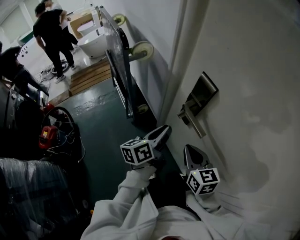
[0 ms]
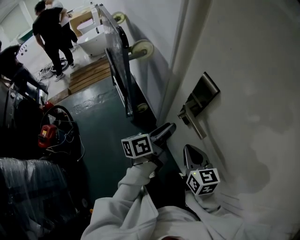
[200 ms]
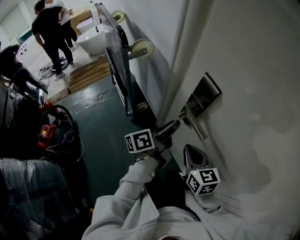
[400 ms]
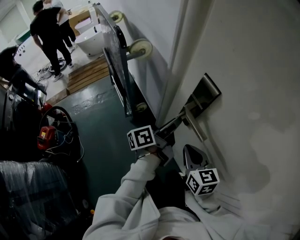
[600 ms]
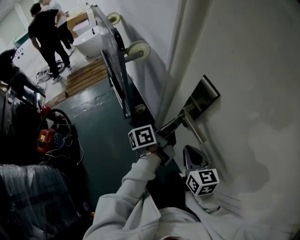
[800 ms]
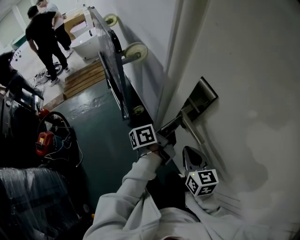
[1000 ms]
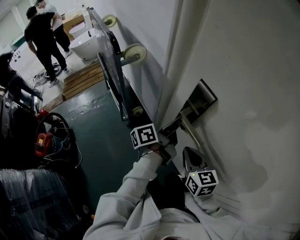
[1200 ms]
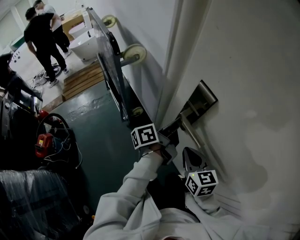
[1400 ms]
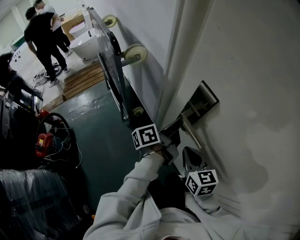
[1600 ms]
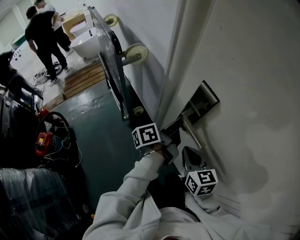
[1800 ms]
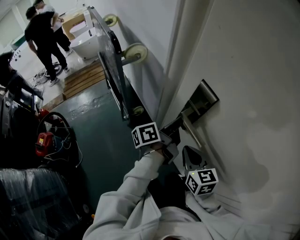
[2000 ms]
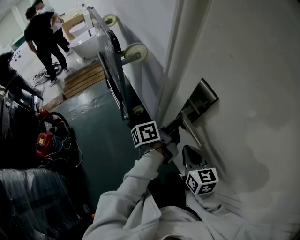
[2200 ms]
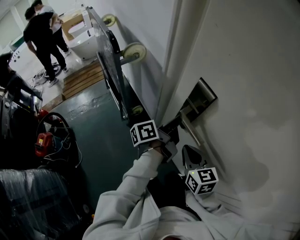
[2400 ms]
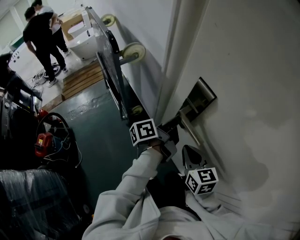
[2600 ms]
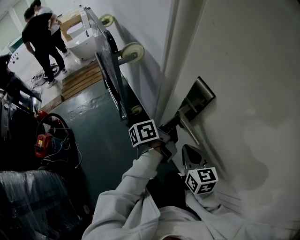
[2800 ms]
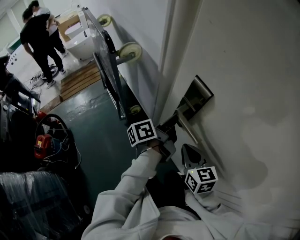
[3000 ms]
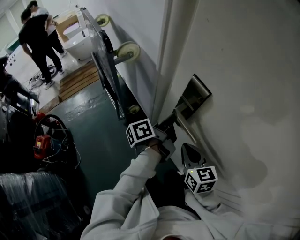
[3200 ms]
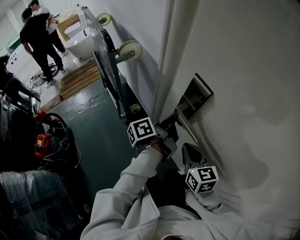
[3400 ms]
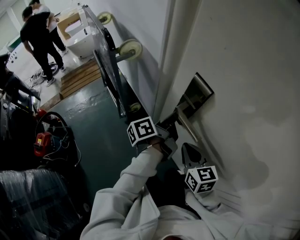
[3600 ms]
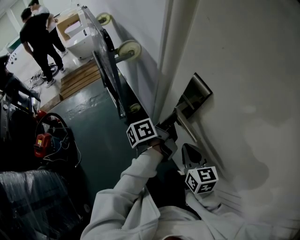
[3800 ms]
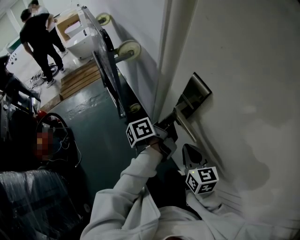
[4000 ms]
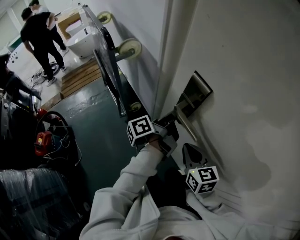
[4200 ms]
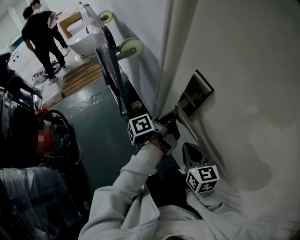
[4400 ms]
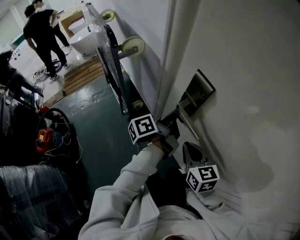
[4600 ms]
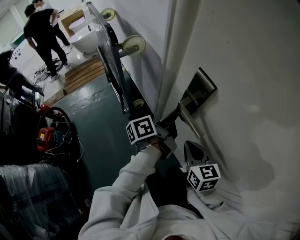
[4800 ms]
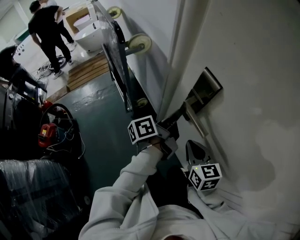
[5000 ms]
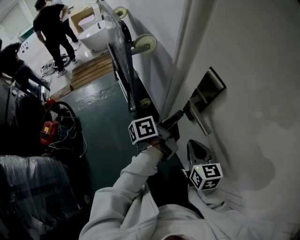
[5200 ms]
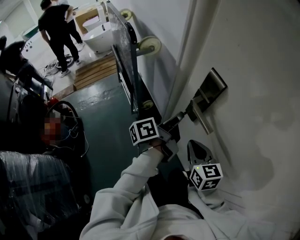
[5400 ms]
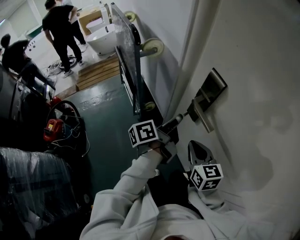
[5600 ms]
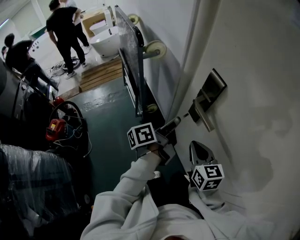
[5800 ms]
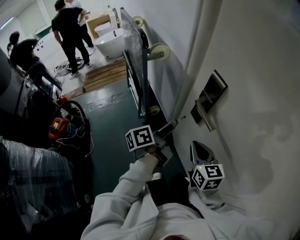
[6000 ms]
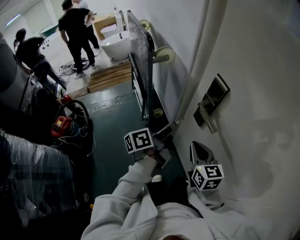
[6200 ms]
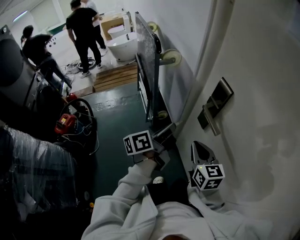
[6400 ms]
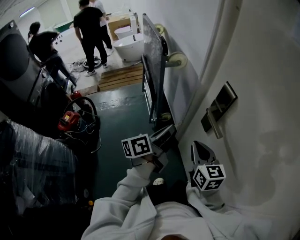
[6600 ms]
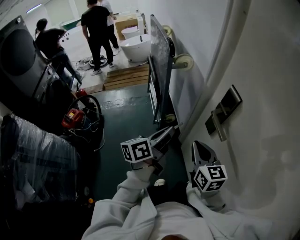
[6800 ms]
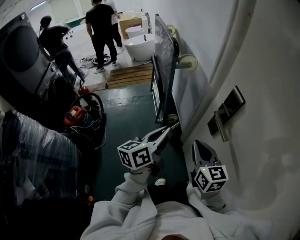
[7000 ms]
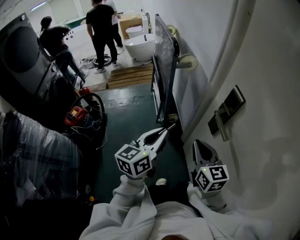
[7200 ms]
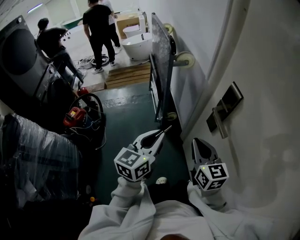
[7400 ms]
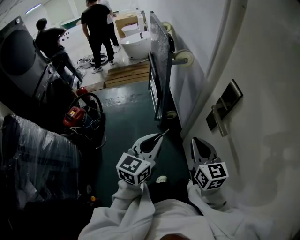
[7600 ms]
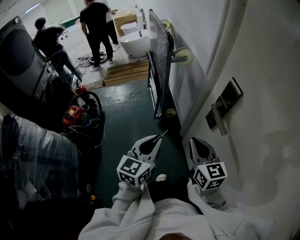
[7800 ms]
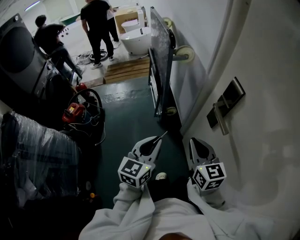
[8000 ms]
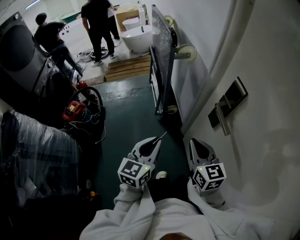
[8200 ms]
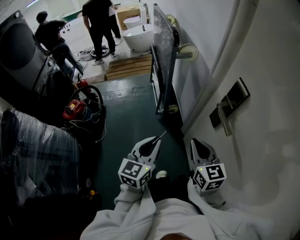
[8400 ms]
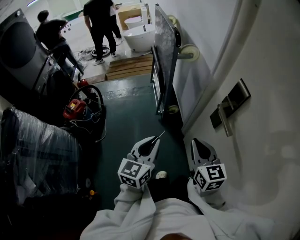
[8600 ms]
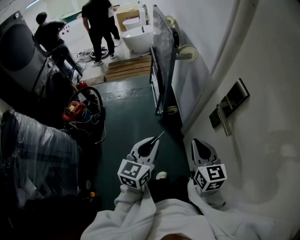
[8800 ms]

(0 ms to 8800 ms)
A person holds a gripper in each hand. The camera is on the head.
0 ms - 1400 ms: The left gripper is displaced forward by approximately 10 cm, and changes its angle by some 30 degrees.
1400 ms - 3000 ms: The two grippers keep their place.
3000 ms - 4400 ms: The grippers make only small movements.
4400 ms - 5800 ms: The left gripper travels backward and to the left by approximately 10 cm, and rotates some 20 degrees.
5800 ms - 7400 ms: The left gripper heads to the left and backward, covering some 15 cm, and rotates around the line of its fingers by roughly 60 degrees, clockwise from behind. The right gripper is displaced to the left by some 5 cm.
7400 ms - 8800 ms: The left gripper is displaced downward by about 5 cm.

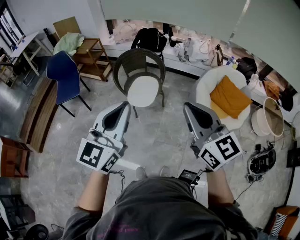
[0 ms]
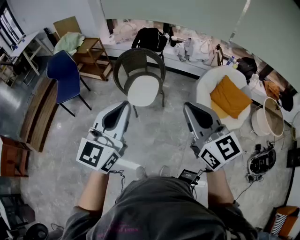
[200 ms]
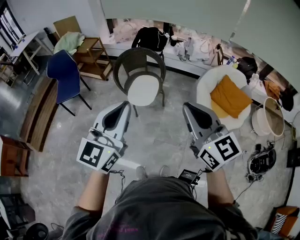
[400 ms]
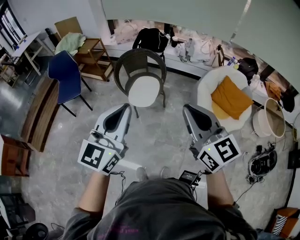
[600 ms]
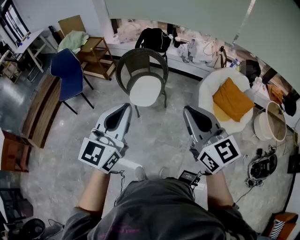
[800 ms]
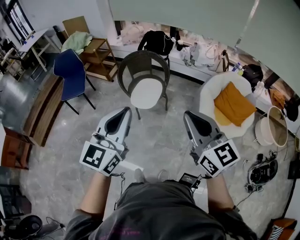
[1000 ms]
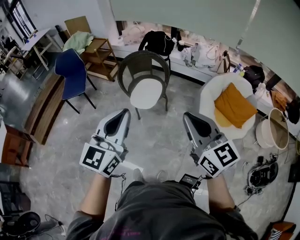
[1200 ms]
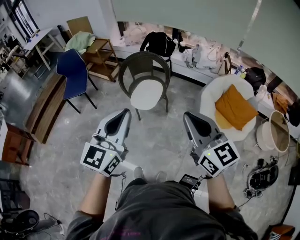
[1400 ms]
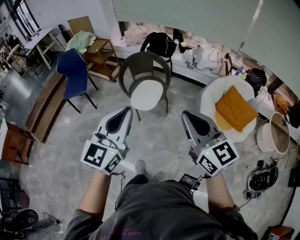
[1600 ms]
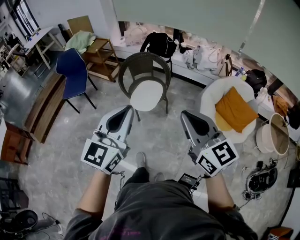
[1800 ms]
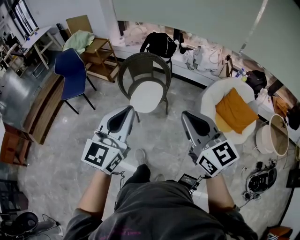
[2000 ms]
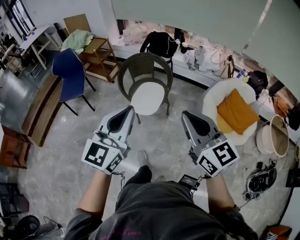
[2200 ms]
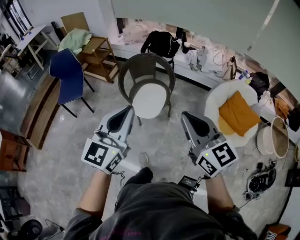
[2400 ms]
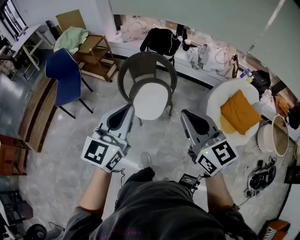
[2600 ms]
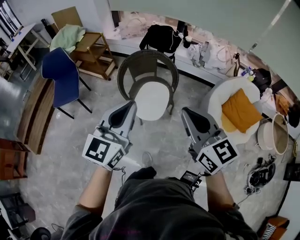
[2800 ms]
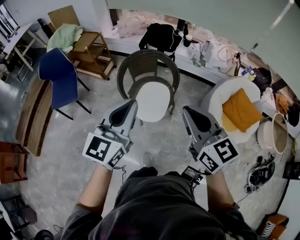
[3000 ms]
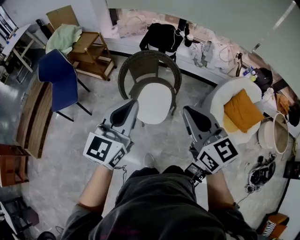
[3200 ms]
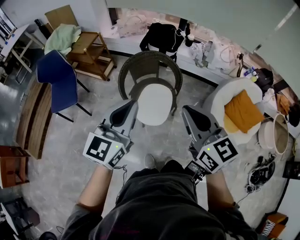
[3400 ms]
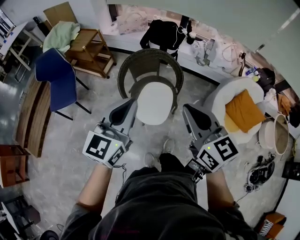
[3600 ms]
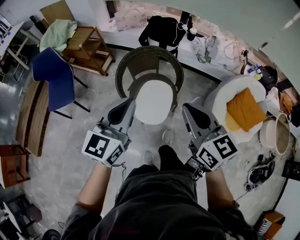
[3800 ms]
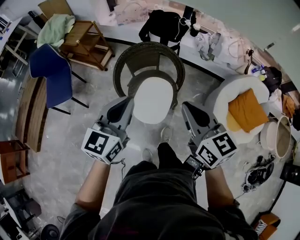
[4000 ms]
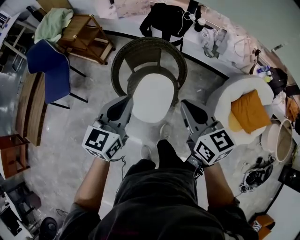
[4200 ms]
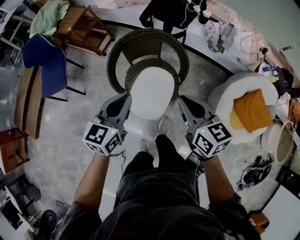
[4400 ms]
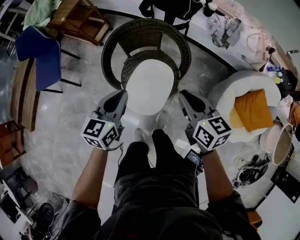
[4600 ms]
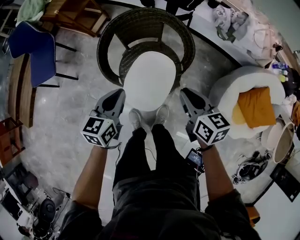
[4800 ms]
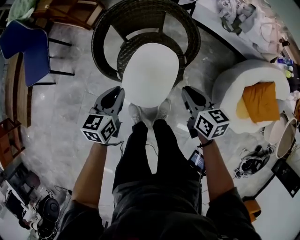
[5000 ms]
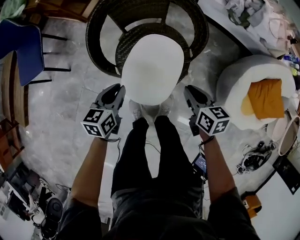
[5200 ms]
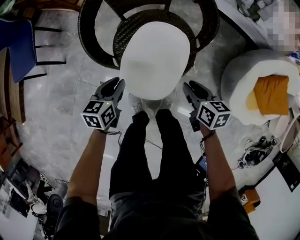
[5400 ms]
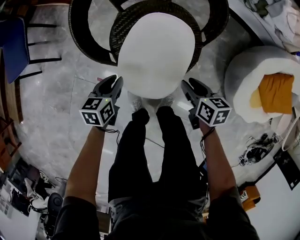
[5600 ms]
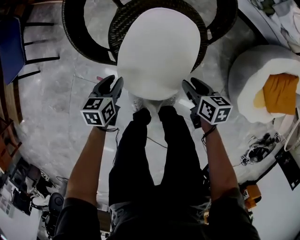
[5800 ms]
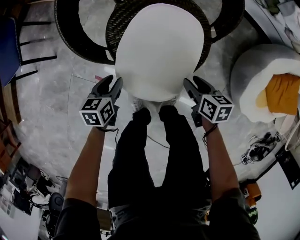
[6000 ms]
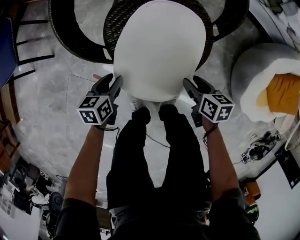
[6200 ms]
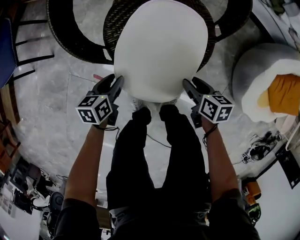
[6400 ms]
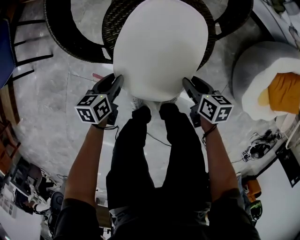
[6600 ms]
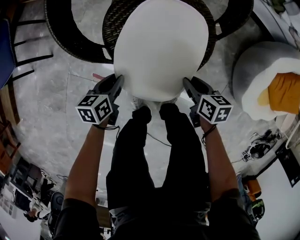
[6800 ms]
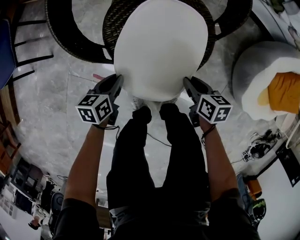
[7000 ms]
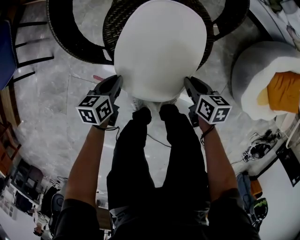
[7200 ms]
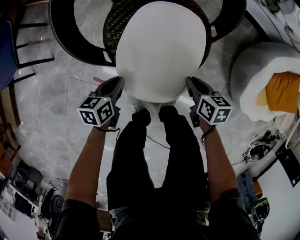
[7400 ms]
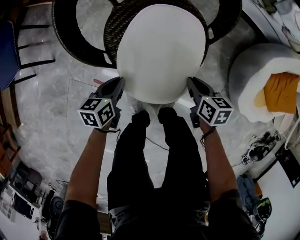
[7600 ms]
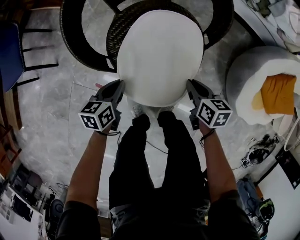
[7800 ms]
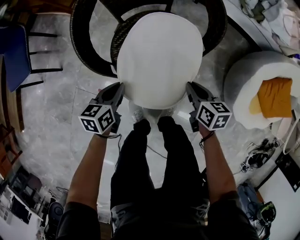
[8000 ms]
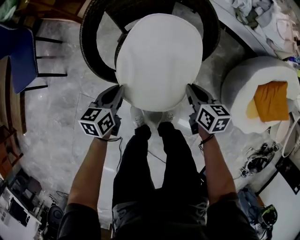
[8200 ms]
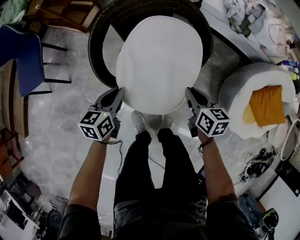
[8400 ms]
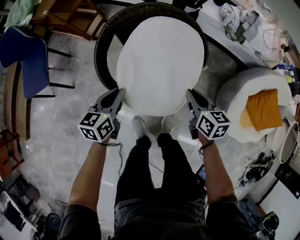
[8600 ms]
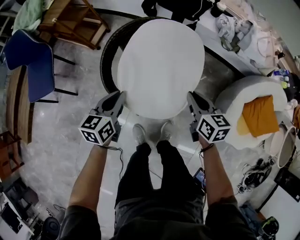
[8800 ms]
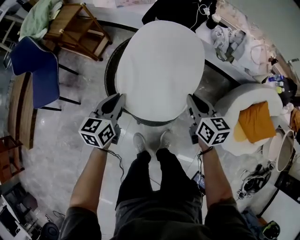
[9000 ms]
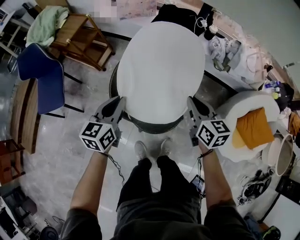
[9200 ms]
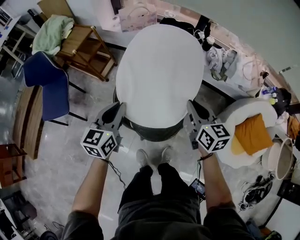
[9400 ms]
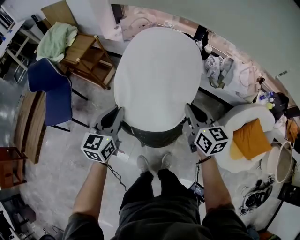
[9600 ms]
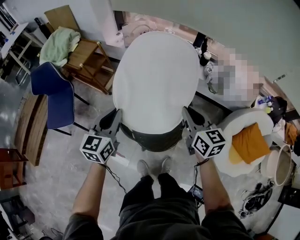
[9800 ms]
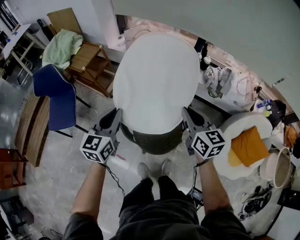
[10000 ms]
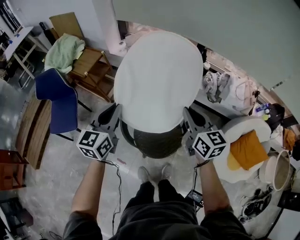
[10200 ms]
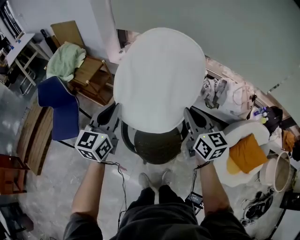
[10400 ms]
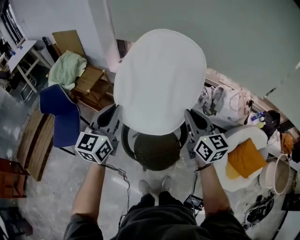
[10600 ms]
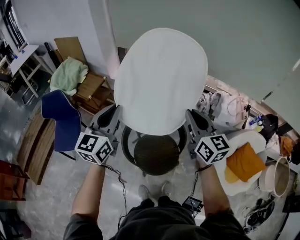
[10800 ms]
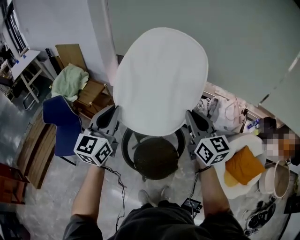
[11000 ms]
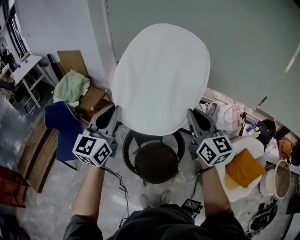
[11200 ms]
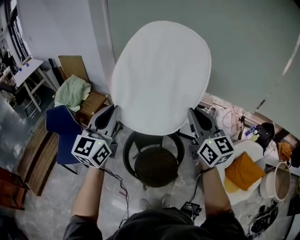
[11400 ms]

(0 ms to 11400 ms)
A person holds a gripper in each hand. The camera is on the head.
0 ms - 1400 ms: The grippers both shift to the right by about 5 cm.
1400 ms - 2800 ms: The left gripper is displaced forward by roughly 25 cm. Meanwhile the right gripper is displaced forward and to the left by roughly 30 cm.
2800 ms - 4200 ms: The grippers both shift forward and downward by approximately 25 cm.
4200 ms - 5600 ms: The grippers both shift downward by roughly 50 cm. The left gripper tilts its fingers approximately 30 degrees downward, and opens. The right gripper swivels roughly 40 degrees, and opens its fingers.
5600 ms - 7200 ms: Both grippers move downward, some 10 cm.
7200 ms - 8600 ms: The grippers both shift upward by approximately 25 cm. The left gripper rotates some 20 degrees; the right gripper changes its angle by about 20 degrees.
8600 ms - 10000 ms: Both grippers travel together upward, some 30 cm. The right gripper rotates roughly 20 degrees; the left gripper swivels about 30 degrees.
10000 ms - 11400 ms: Both grippers move upward, some 30 cm. The left gripper turns by about 30 degrees. Meanwhile the right gripper turns by about 30 degrees.

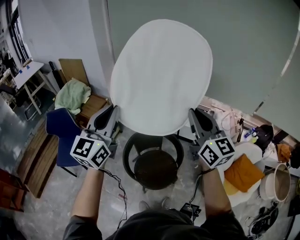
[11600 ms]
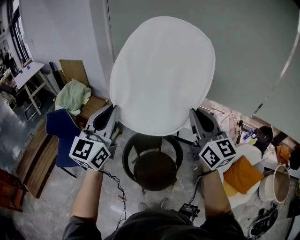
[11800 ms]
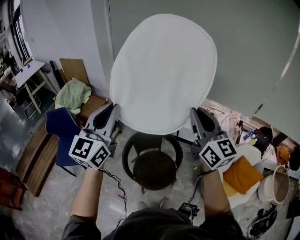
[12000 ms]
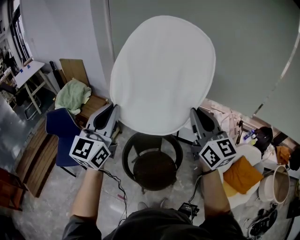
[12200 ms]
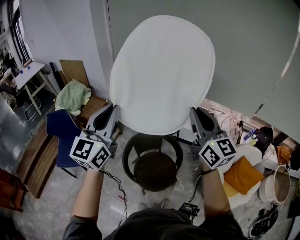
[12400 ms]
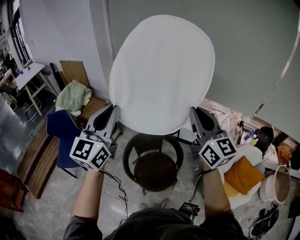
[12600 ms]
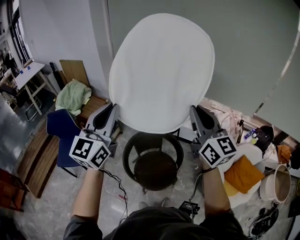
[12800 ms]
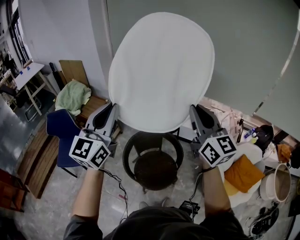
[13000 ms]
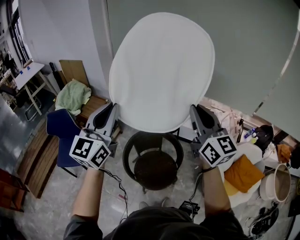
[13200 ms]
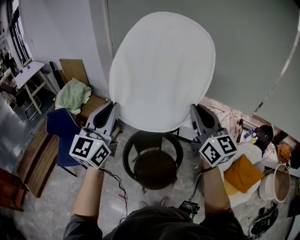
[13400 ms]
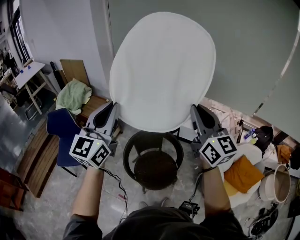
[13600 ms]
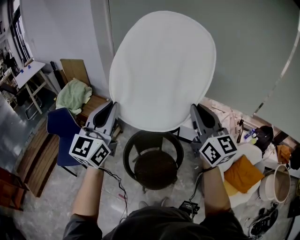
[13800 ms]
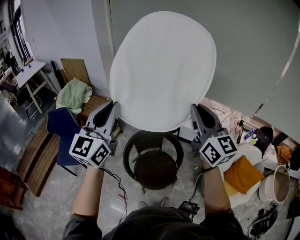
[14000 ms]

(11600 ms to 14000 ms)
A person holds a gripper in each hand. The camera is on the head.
11600 ms - 12800 ms: The grippers move only a little.
12800 ms - 14000 ms: The two grippers keep their place.

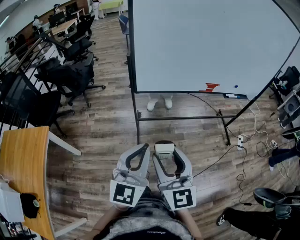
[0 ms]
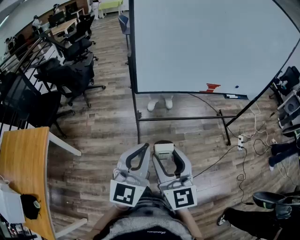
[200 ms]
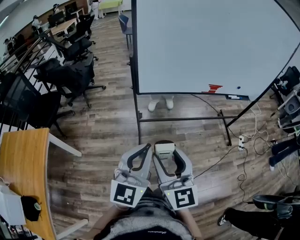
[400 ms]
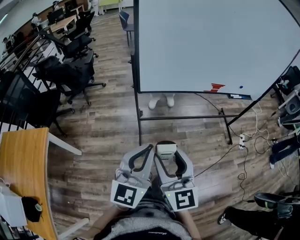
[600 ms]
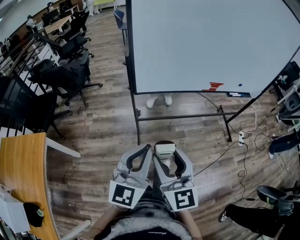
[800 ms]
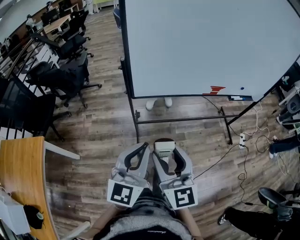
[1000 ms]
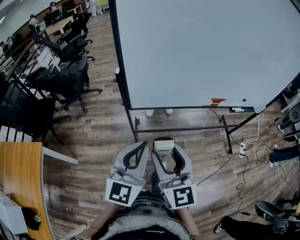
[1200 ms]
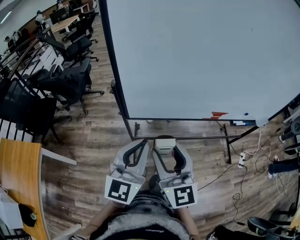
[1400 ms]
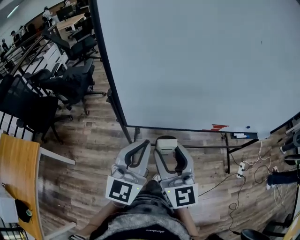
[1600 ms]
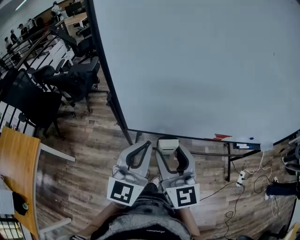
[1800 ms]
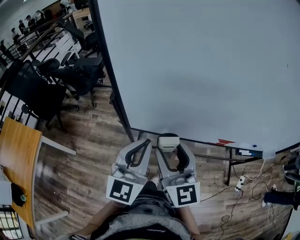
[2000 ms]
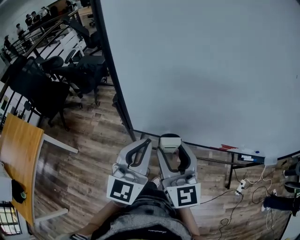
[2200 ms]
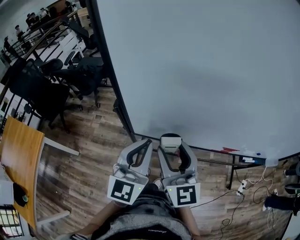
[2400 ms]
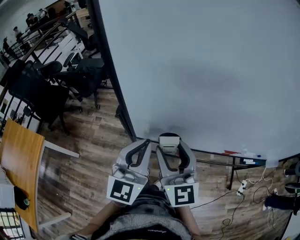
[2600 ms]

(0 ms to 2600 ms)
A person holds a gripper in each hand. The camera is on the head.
0 ms - 1200 ms: Both grippers move forward, about 20 cm.
1200 ms - 2600 ms: Both grippers move forward, approximately 25 cm.
